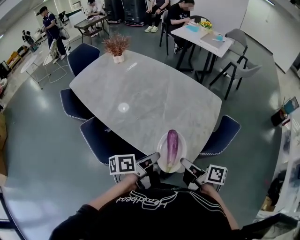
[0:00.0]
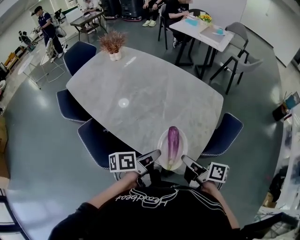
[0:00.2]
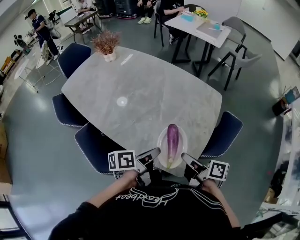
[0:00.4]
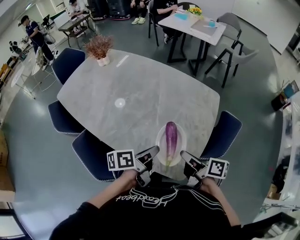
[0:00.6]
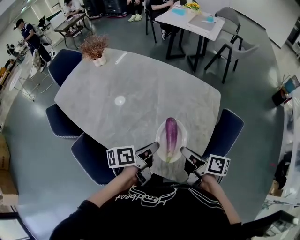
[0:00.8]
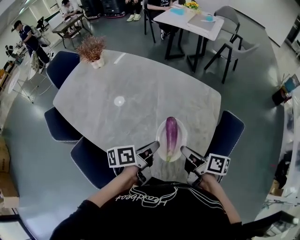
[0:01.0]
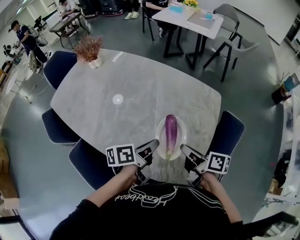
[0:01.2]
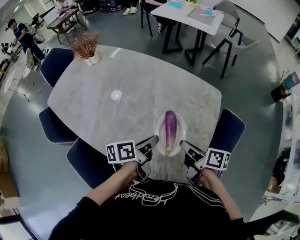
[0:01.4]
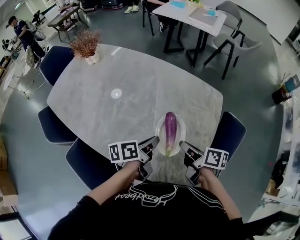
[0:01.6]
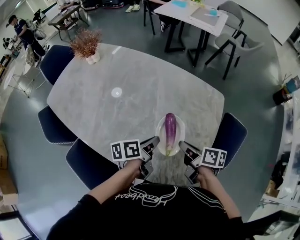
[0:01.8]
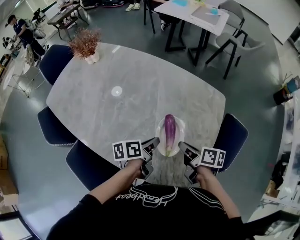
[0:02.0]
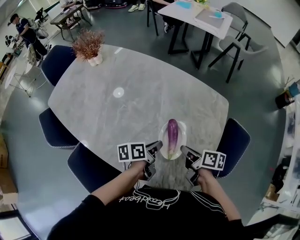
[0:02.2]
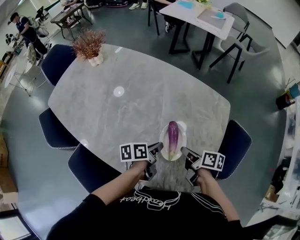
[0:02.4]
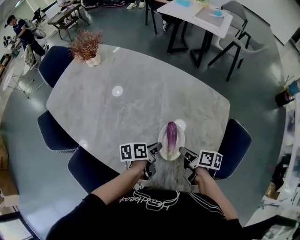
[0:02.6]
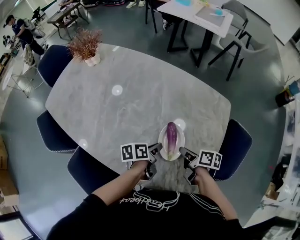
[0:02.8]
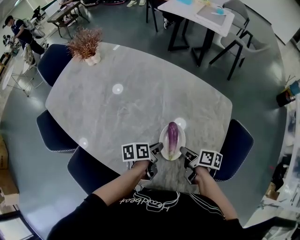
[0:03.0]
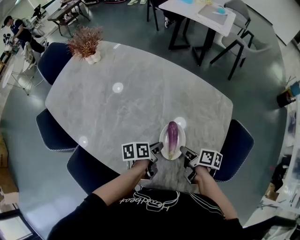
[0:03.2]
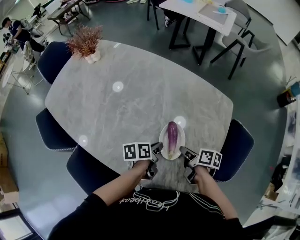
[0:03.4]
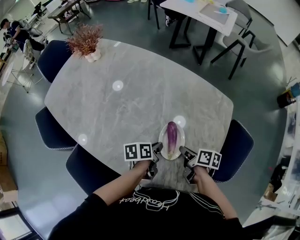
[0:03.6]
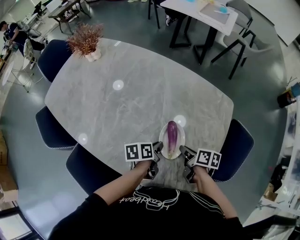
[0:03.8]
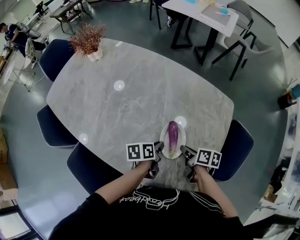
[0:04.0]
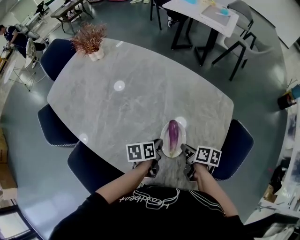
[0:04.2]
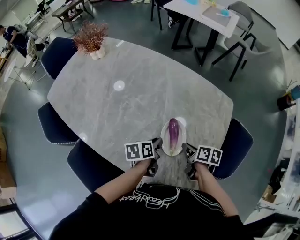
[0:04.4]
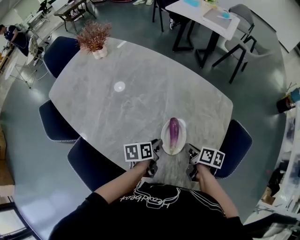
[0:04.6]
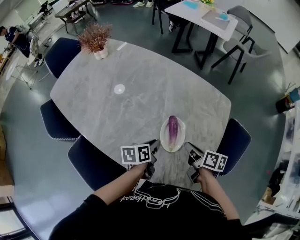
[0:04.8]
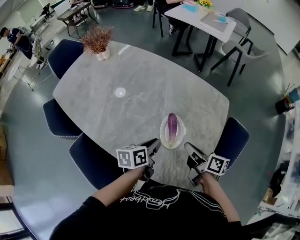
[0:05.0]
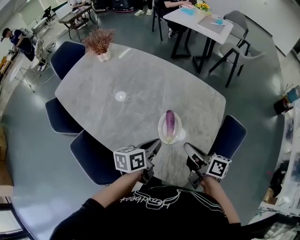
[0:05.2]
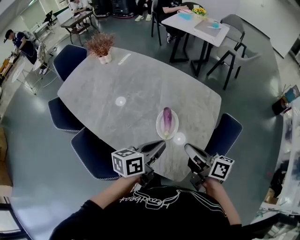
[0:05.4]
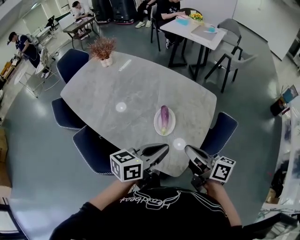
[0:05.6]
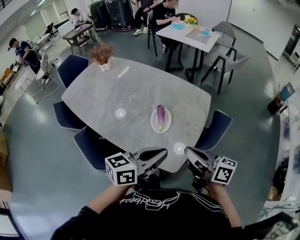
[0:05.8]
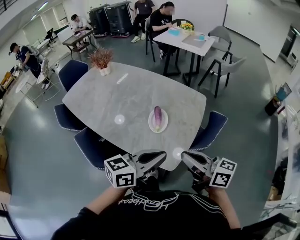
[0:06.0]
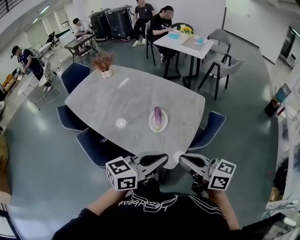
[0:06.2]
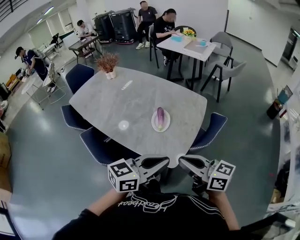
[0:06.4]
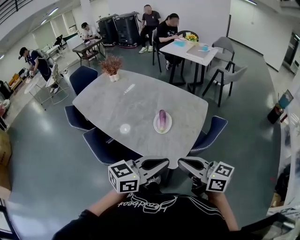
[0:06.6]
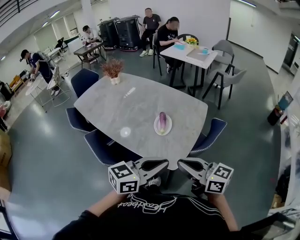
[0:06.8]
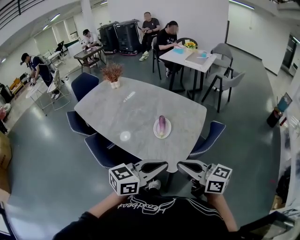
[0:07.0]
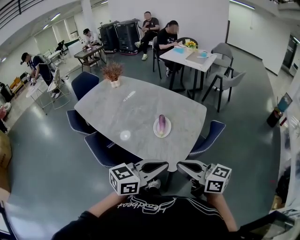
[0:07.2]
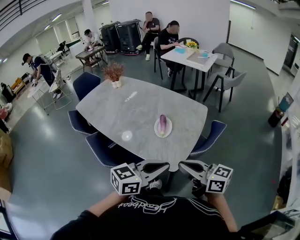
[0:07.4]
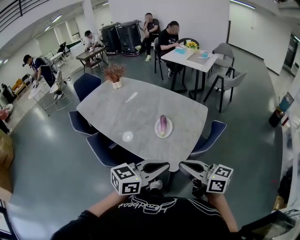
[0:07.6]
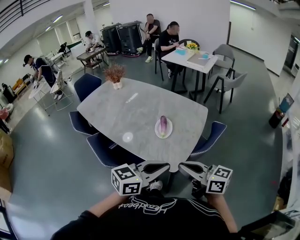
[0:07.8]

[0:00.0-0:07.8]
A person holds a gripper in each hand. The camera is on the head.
0:00.0 to 0:01.6: The grippers both shift forward by approximately 20 cm.
0:01.6 to 0:03.2: The two grippers go some 10 cm downward.
0:03.2 to 0:04.6: The grippers stay close to where they were, moving slightly.
0:04.6 to 0:06.2: The right gripper is displaced backward and upward by roughly 40 cm, and points its fingers roughly 40 degrees further upward; the left gripper goes roughly 40 cm backward, upward and to the right, and points its fingers roughly 40 degrees further upward.
0:06.2 to 0:07.8: The two grippers go approximately 5 cm backward.

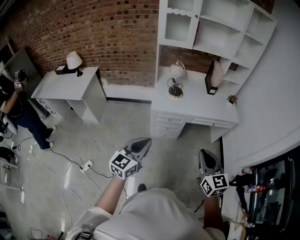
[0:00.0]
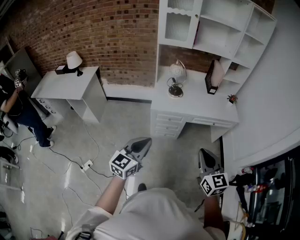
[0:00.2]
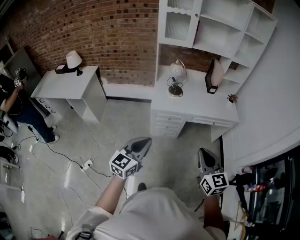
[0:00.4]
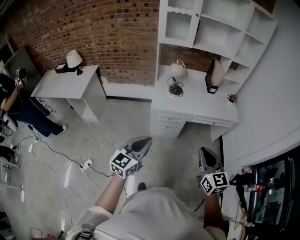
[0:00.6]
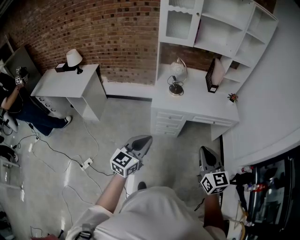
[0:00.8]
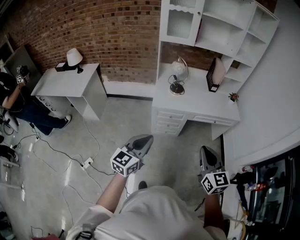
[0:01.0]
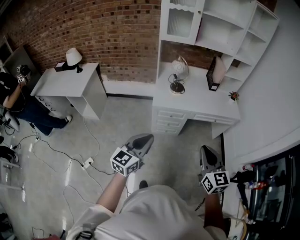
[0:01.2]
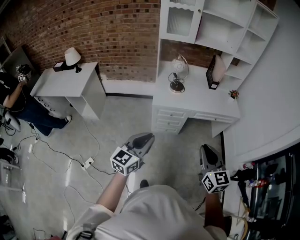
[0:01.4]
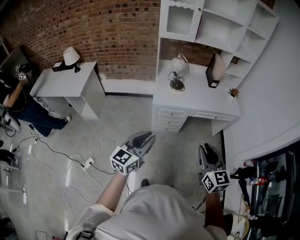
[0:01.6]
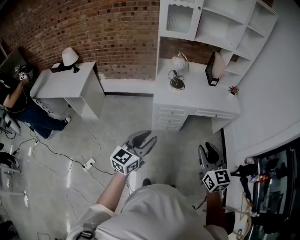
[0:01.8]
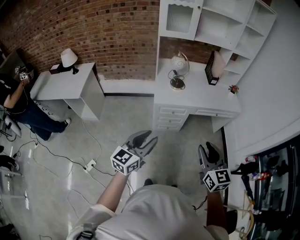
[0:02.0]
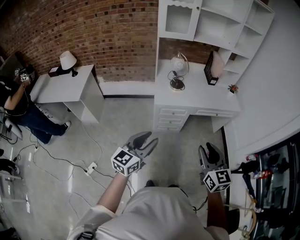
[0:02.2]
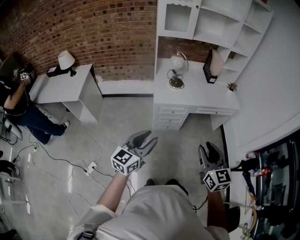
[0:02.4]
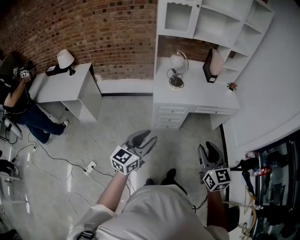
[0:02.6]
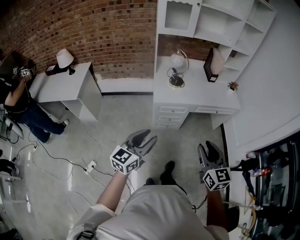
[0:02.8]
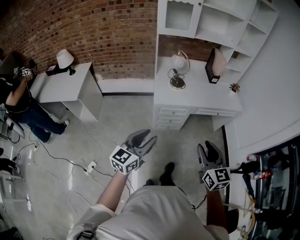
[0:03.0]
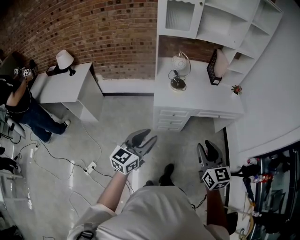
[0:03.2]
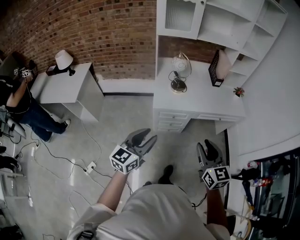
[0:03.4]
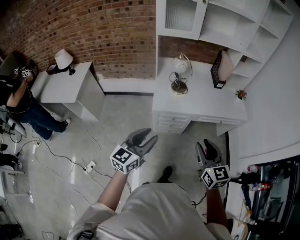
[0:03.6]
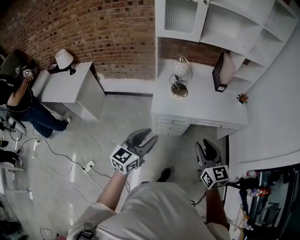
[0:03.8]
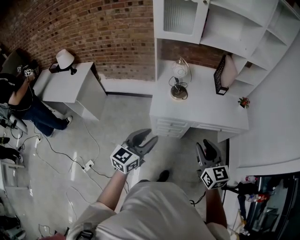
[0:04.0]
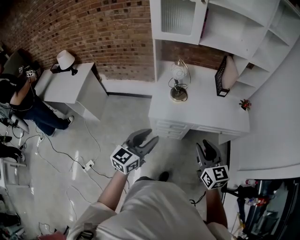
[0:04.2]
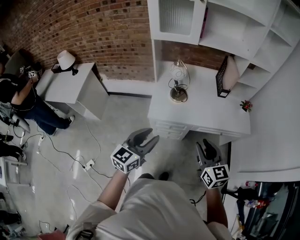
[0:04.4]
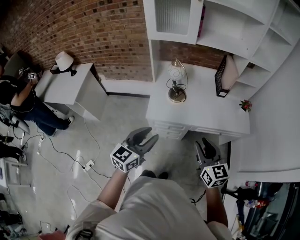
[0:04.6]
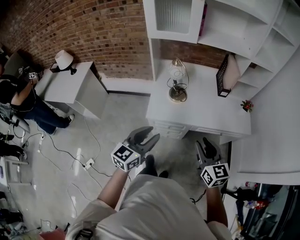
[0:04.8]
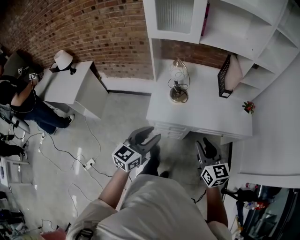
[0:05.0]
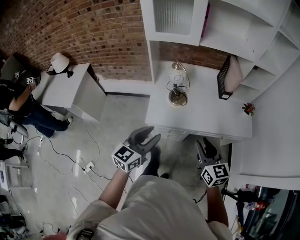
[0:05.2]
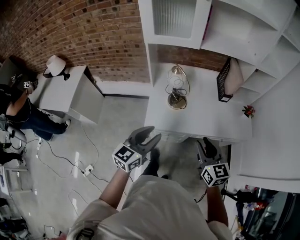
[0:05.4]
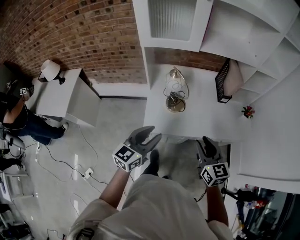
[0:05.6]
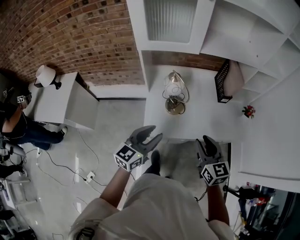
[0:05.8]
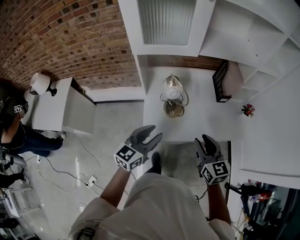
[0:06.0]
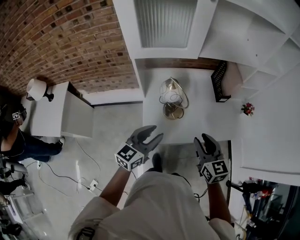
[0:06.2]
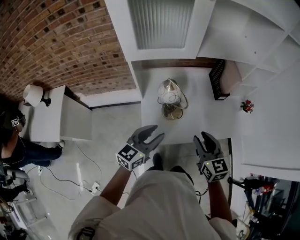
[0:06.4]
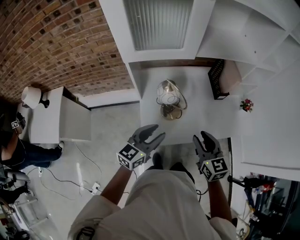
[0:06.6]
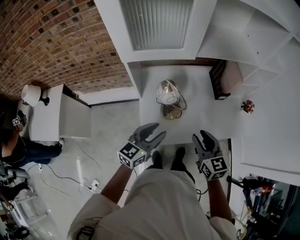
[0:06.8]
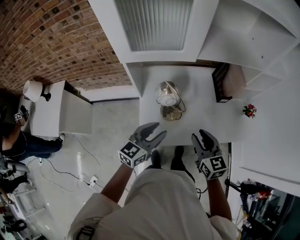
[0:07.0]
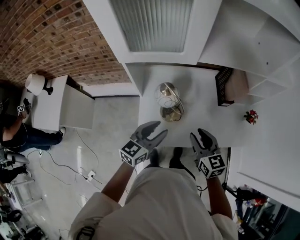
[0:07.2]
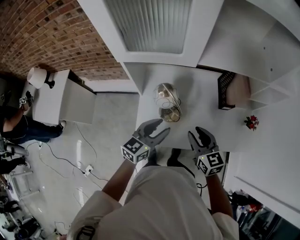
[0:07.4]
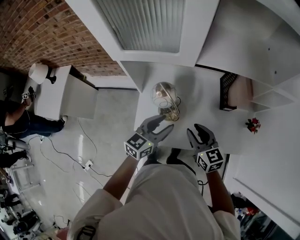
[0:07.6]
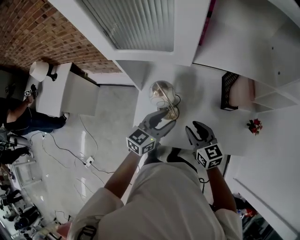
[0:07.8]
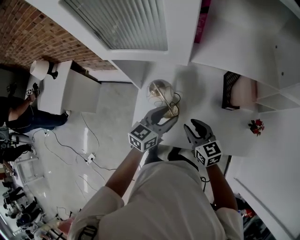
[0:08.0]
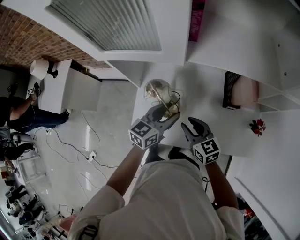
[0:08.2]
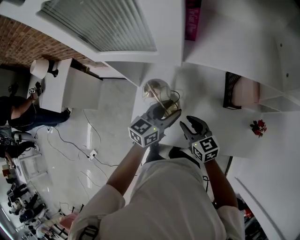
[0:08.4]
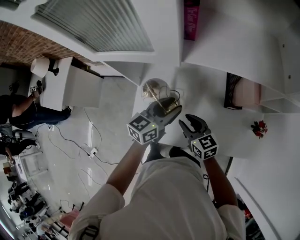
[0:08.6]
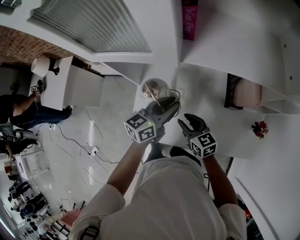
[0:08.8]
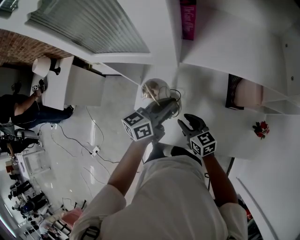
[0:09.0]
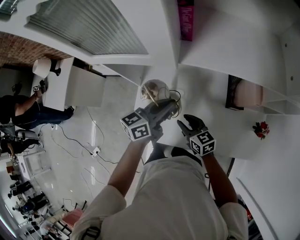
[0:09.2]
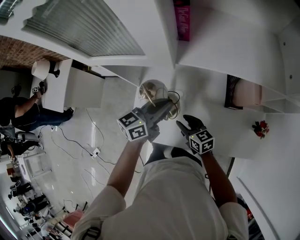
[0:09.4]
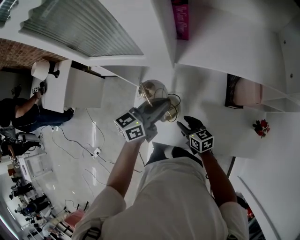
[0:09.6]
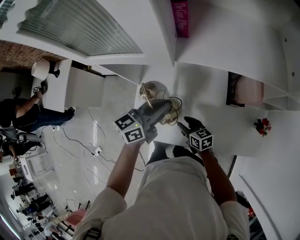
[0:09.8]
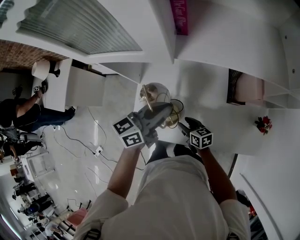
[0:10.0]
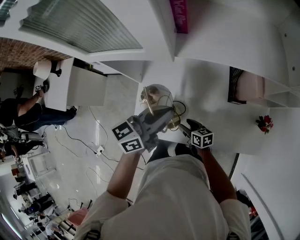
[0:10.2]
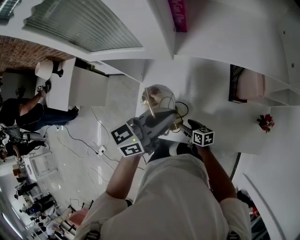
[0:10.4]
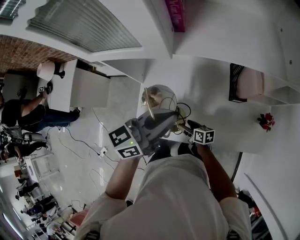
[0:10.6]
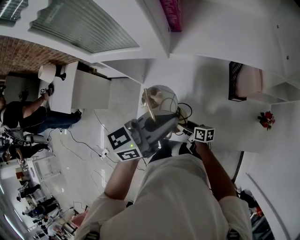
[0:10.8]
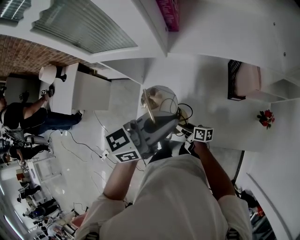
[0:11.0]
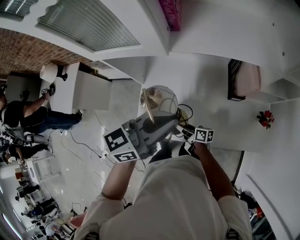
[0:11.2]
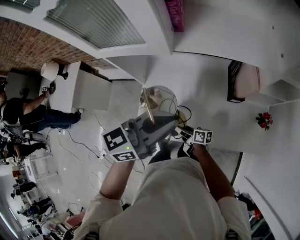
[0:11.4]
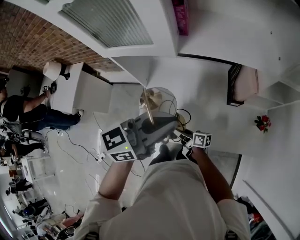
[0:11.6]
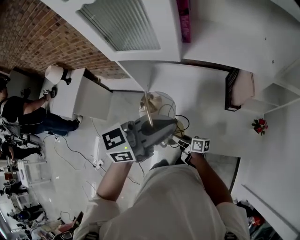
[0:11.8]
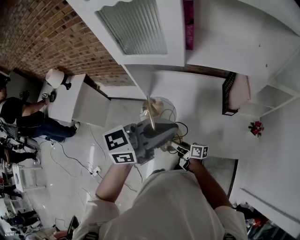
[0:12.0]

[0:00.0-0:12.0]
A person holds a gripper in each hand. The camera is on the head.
0:00.0 to 0:01.6: There are only small adjustments of the grippers.
0:01.6 to 0:03.0: The right gripper shifts by about 5 cm. Meanwhile the left gripper ends up approximately 5 cm from where it was.
0:03.0 to 0:04.4: The right gripper shifts roughly 25 cm forward. The left gripper travels forward and to the right by some 25 cm.
0:04.4 to 0:06.0: Both grippers travel together forward, approximately 25 cm.
0:06.0 to 0:07.6: The right gripper travels forward and downward by about 20 cm. The left gripper goes roughly 20 cm forward and to the right.
0:07.6 to 0:09.0: The right gripper moves downward and forward, approximately 15 cm; the left gripper travels forward and to the right by roughly 15 cm, swivels approximately 20 degrees, and closes.
0:09.0 to 0:10.4: The right gripper is displaced downward by approximately 15 cm, changes its angle by some 30 degrees, and opens up. Meanwhile the left gripper is displaced upward and backward by approximately 10 cm.
0:10.4 to 0:12.0: The right gripper travels upward, backward and to the left by about 15 cm, and turns by approximately 30 degrees; the left gripper is displaced upward and backward by about 20 cm.

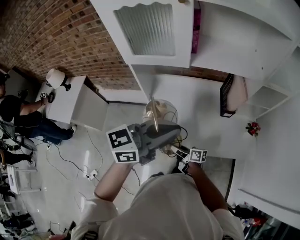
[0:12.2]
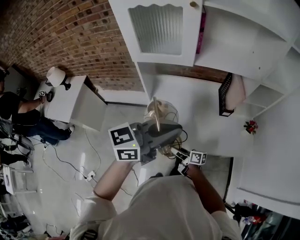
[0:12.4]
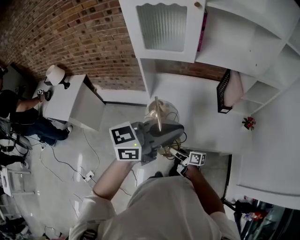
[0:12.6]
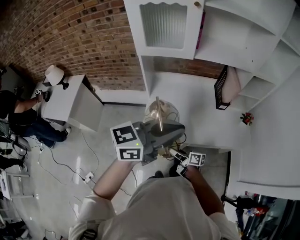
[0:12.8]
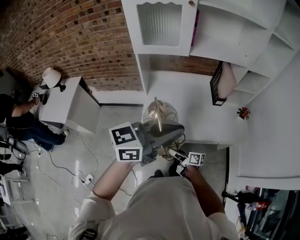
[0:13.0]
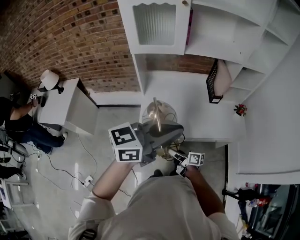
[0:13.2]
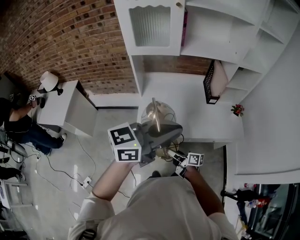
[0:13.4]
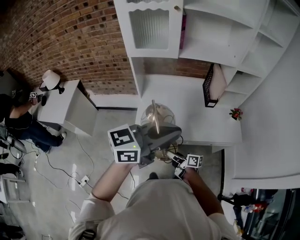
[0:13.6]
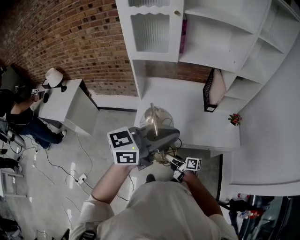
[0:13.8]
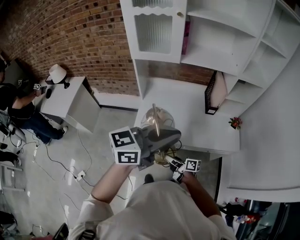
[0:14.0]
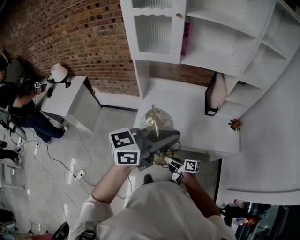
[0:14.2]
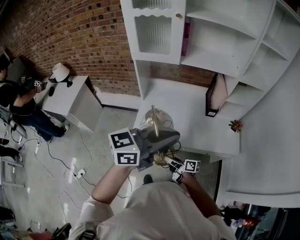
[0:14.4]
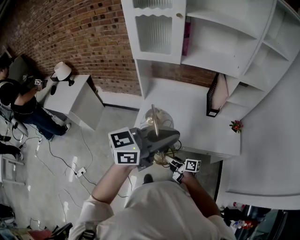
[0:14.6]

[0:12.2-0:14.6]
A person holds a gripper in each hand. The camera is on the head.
0:12.2 to 0:13.4: Both grippers move backward, approximately 20 cm.
0:13.4 to 0:14.6: The grippers both shift to the right by roughly 5 cm.

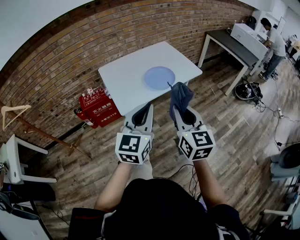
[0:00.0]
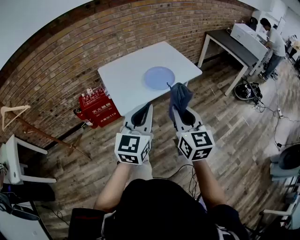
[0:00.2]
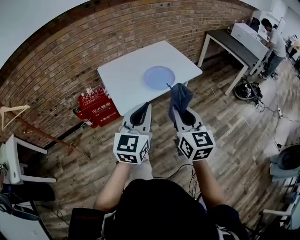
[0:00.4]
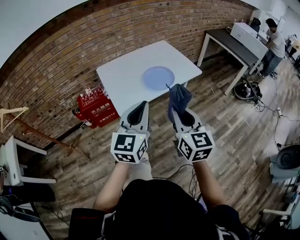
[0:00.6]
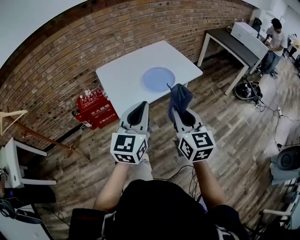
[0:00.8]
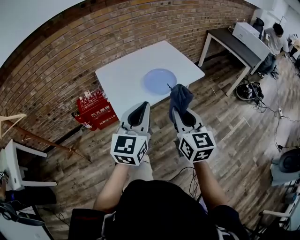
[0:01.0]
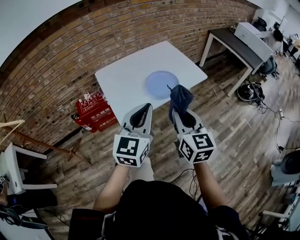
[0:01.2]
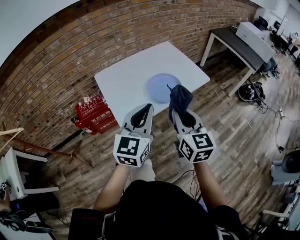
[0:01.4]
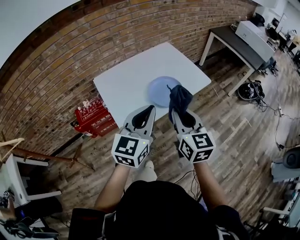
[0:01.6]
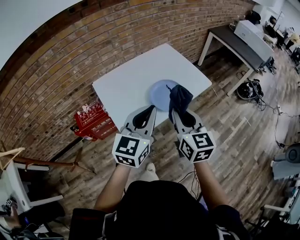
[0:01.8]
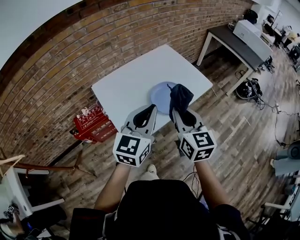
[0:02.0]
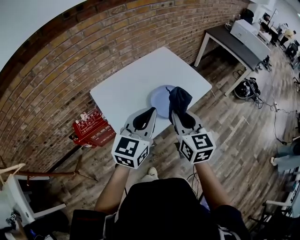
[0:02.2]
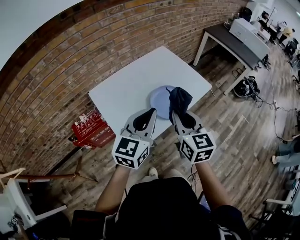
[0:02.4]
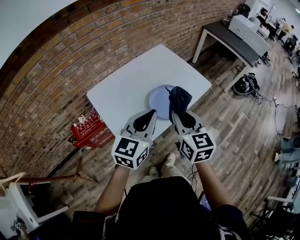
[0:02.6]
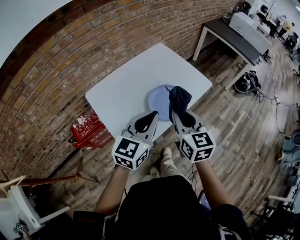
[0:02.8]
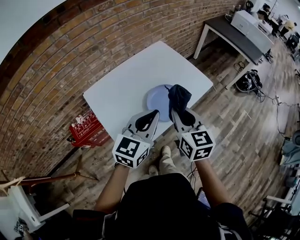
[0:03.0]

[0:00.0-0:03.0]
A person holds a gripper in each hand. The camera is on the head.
0:00.0 to 0:01.6: Both grippers travel together forward, roughly 20 cm.
0:01.6 to 0:03.0: Both grippers travel together forward, some 15 cm.
